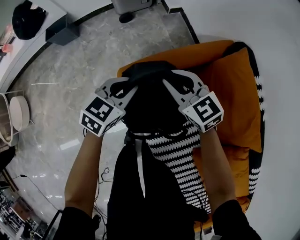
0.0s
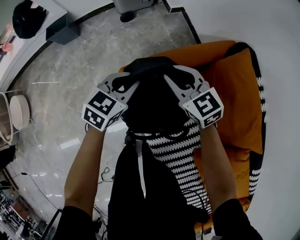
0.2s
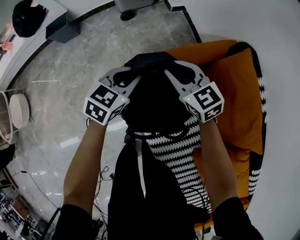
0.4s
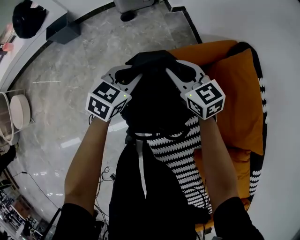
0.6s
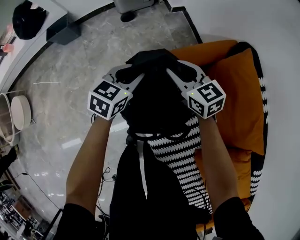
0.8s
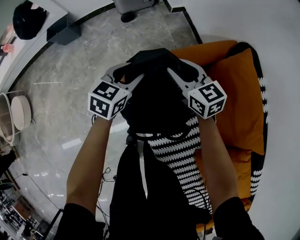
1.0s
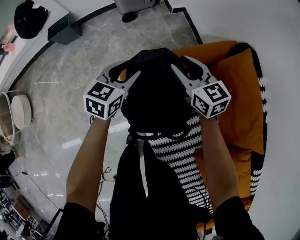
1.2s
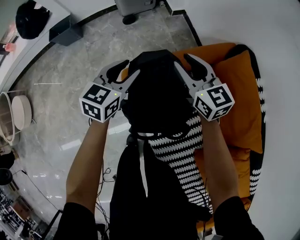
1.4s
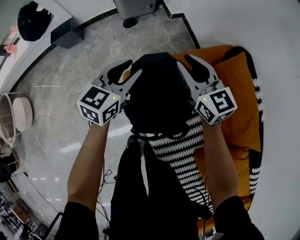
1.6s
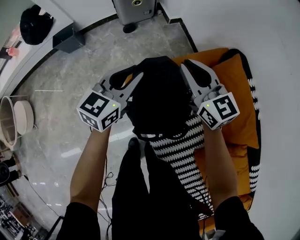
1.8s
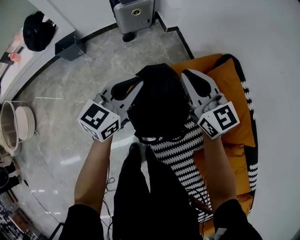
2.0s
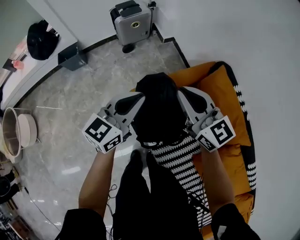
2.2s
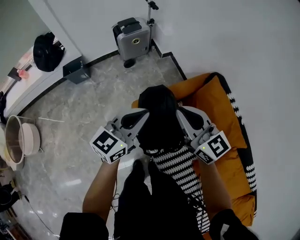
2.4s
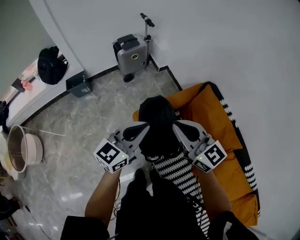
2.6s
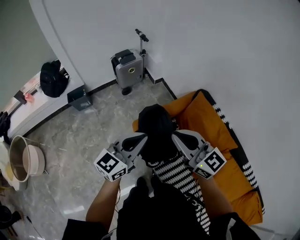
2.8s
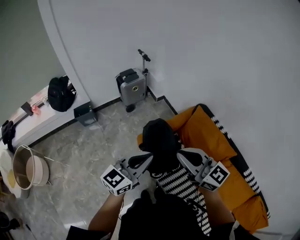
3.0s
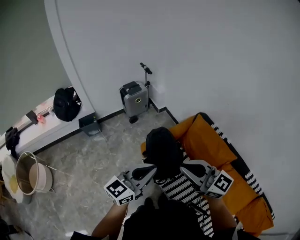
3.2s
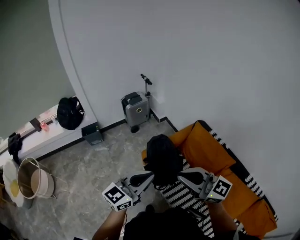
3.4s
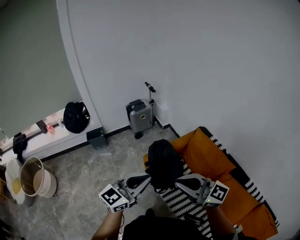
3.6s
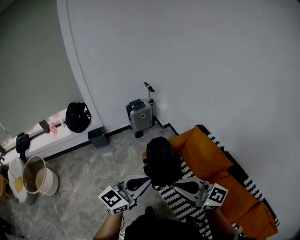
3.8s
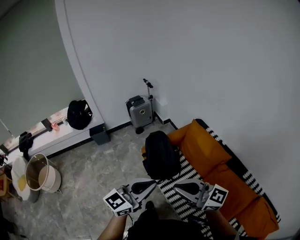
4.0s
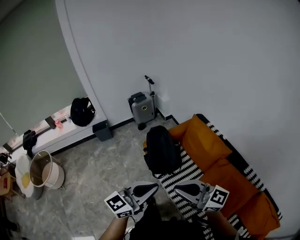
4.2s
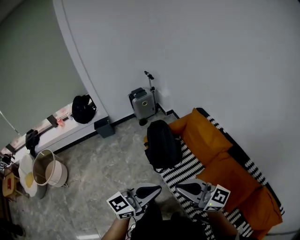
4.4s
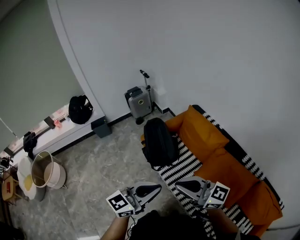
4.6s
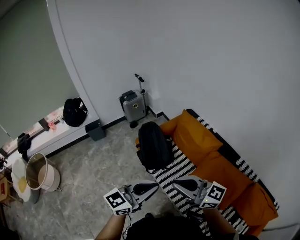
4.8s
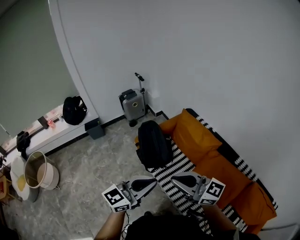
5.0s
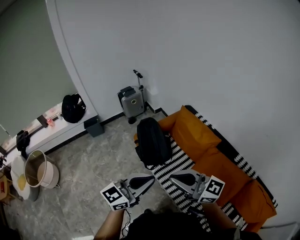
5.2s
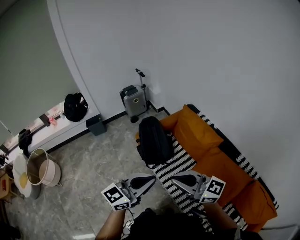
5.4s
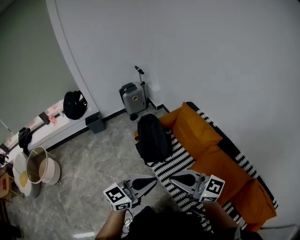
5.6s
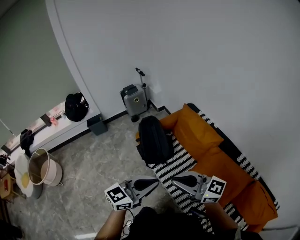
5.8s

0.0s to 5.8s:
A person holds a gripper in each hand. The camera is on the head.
0.0s to 1.4s: Both grippers travel together forward, approximately 5 cm. The right gripper opens. The left gripper opens up.
1.4s to 2.8s: The grippers both shift upward and backward by roughly 40 cm. The left gripper turns by approximately 30 degrees, and closes its fingers. Meanwhile the right gripper closes.
2.8s to 4.4s: The grippers both shift backward by some 40 cm. The right gripper swivels approximately 20 degrees.
4.4s to 5.8s: The grippers move only a little.

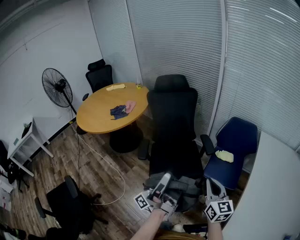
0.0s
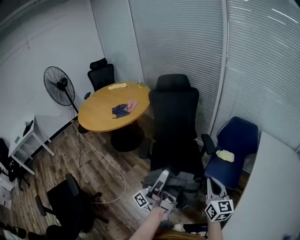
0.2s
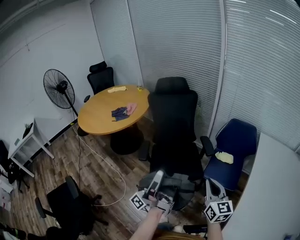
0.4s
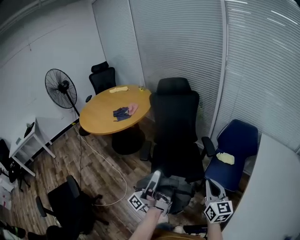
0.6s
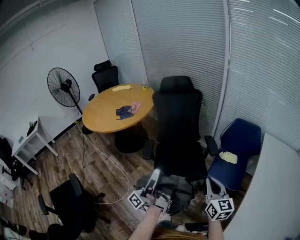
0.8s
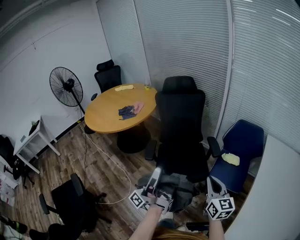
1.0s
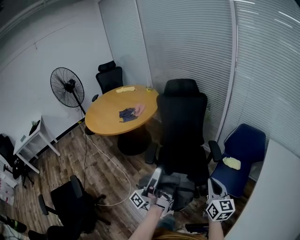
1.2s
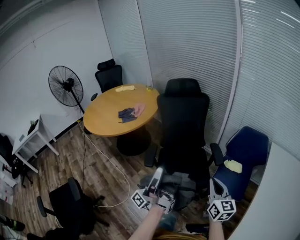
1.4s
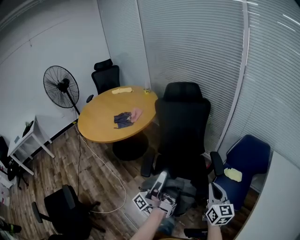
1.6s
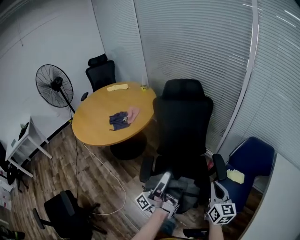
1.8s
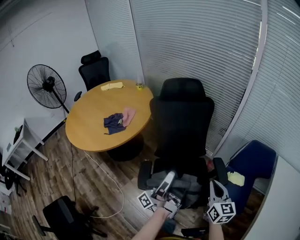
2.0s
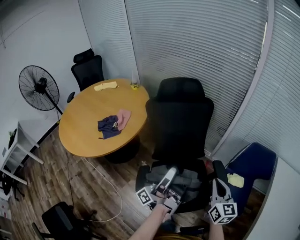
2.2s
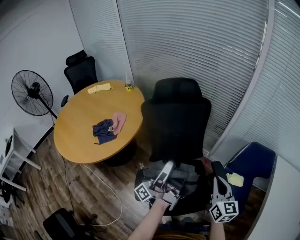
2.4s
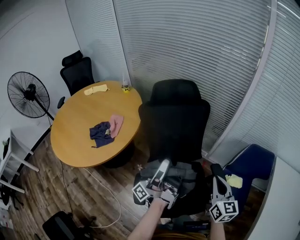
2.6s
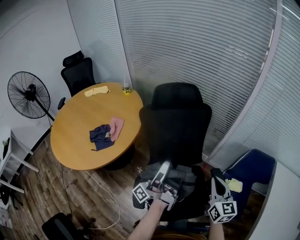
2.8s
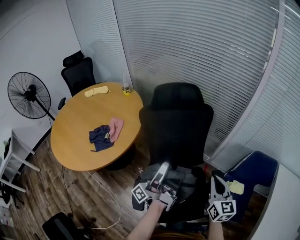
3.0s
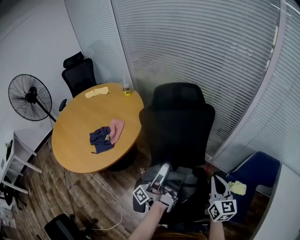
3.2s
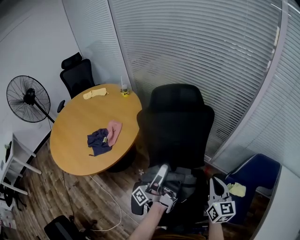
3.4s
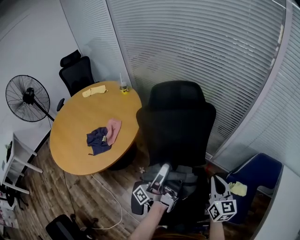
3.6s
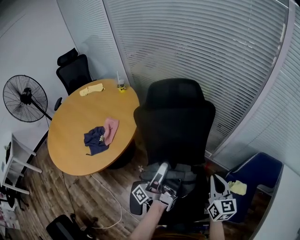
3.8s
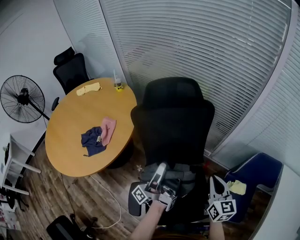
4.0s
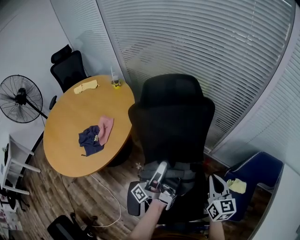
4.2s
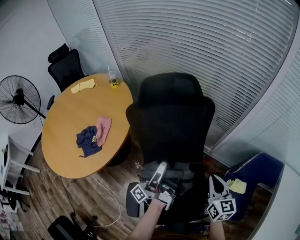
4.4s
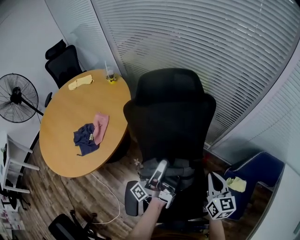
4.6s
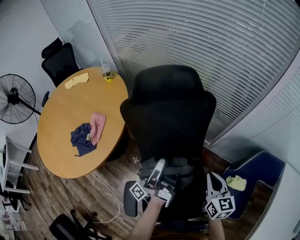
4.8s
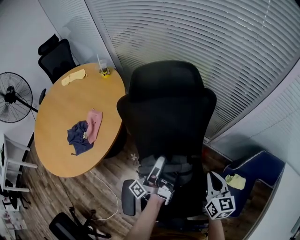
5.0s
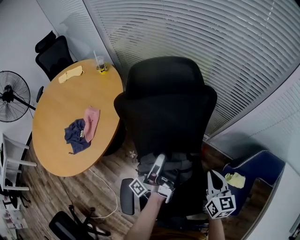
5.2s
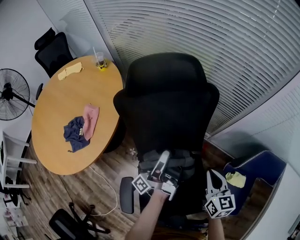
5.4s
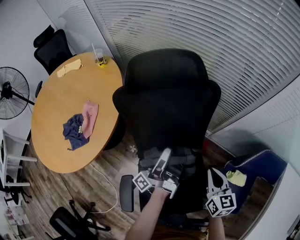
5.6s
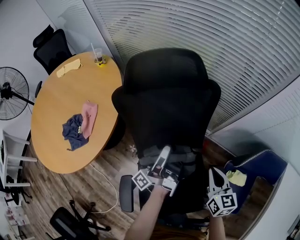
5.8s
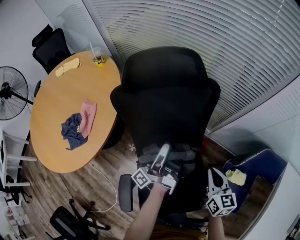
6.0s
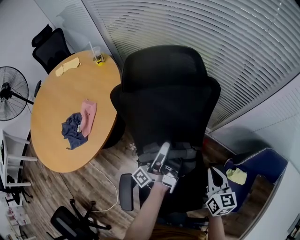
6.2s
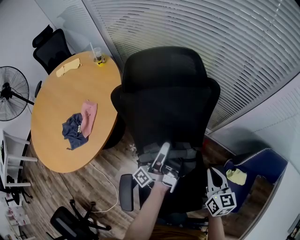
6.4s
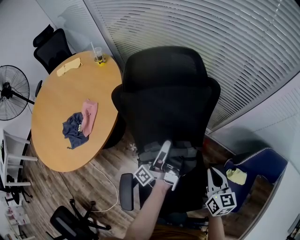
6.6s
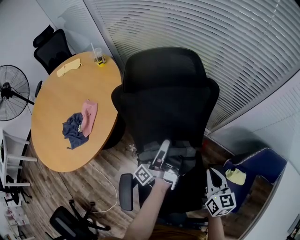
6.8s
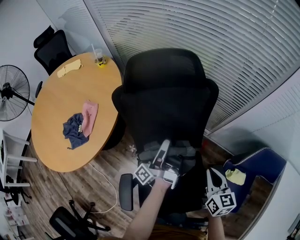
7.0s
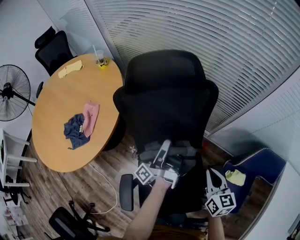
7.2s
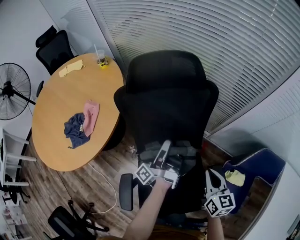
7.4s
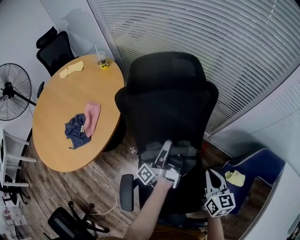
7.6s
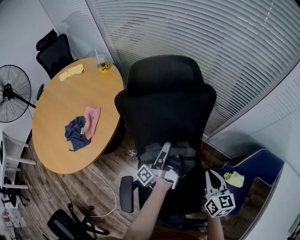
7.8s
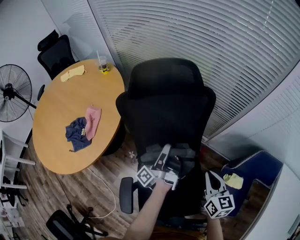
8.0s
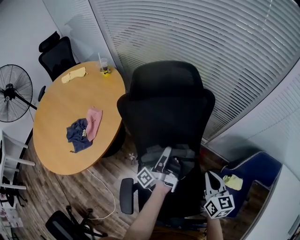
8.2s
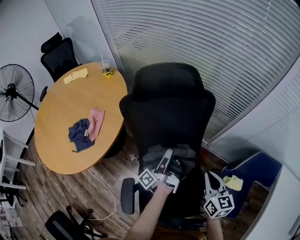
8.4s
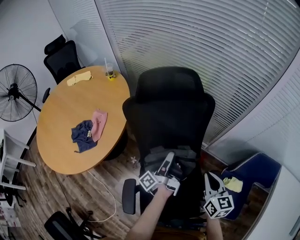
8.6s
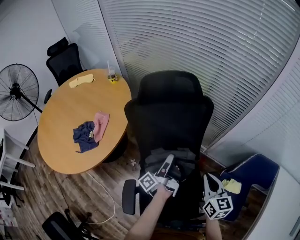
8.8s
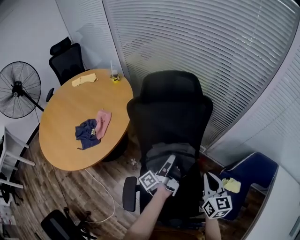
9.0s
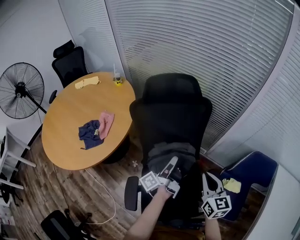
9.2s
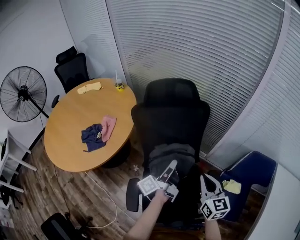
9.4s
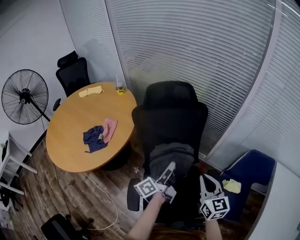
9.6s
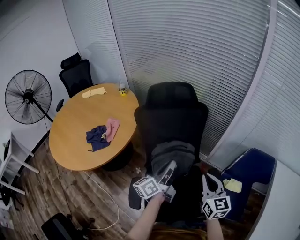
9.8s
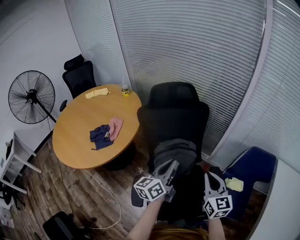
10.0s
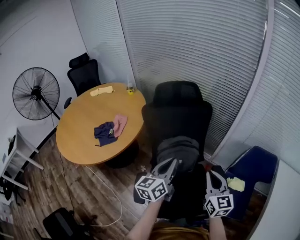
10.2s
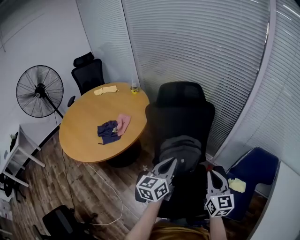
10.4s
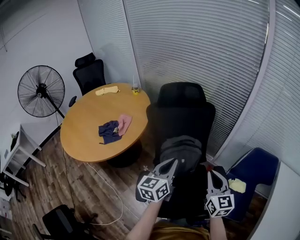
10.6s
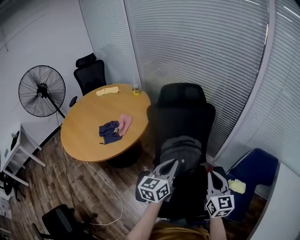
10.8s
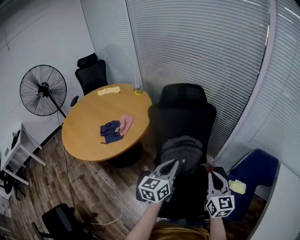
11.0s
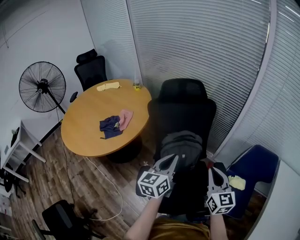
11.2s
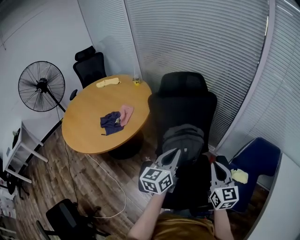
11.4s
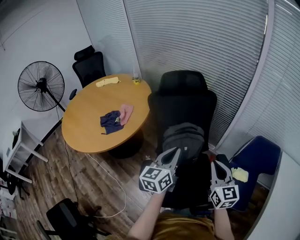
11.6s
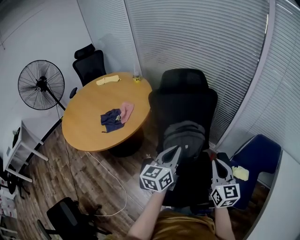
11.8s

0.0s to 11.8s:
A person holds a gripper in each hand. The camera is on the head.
0.0s to 1.4s: The right gripper moves about 10 cm.
1.4s to 3.0s: The right gripper shifts by some 40 cm.
3.0s to 4.4s: The right gripper shifts by about 10 cm.
4.4s to 6.0s: The right gripper is displaced downward by approximately 5 cm.
7.4s to 8.8s: The right gripper travels upward by approximately 5 cm.
8.8s to 10.4s: The right gripper moves about 15 cm.

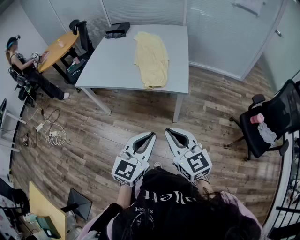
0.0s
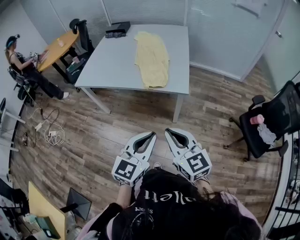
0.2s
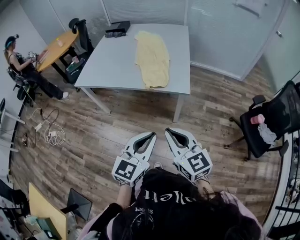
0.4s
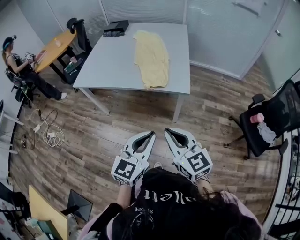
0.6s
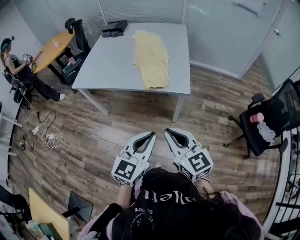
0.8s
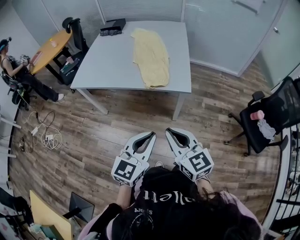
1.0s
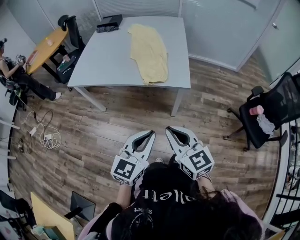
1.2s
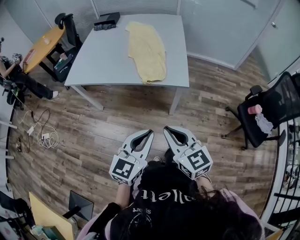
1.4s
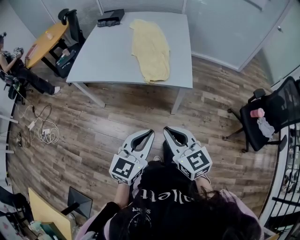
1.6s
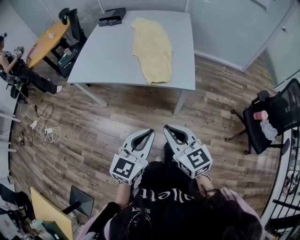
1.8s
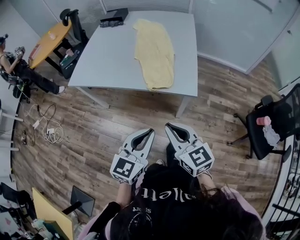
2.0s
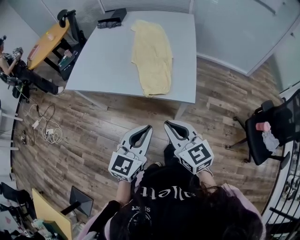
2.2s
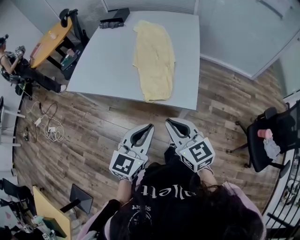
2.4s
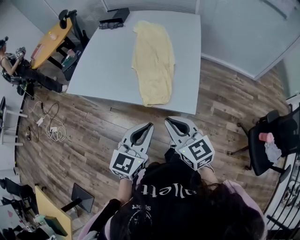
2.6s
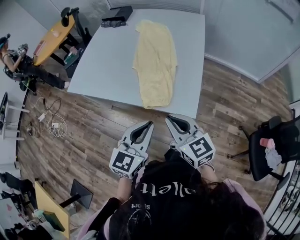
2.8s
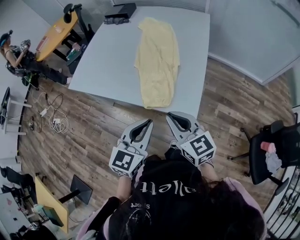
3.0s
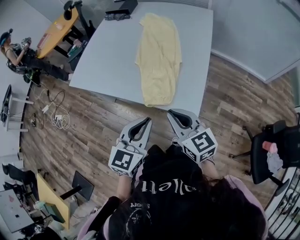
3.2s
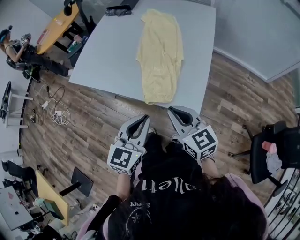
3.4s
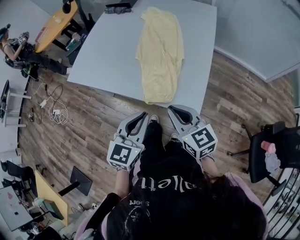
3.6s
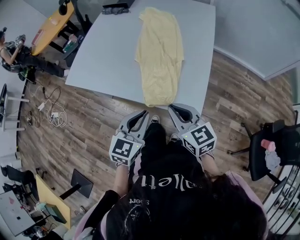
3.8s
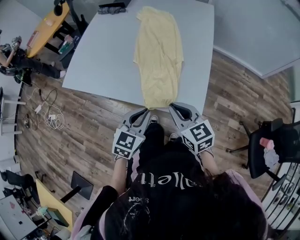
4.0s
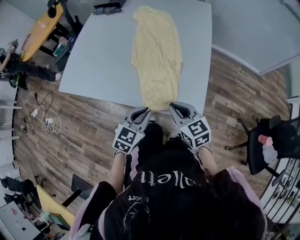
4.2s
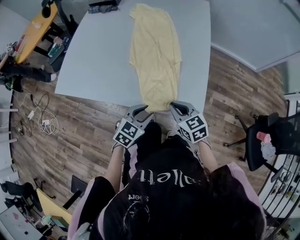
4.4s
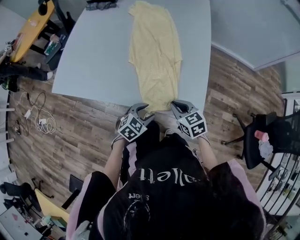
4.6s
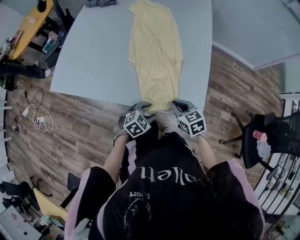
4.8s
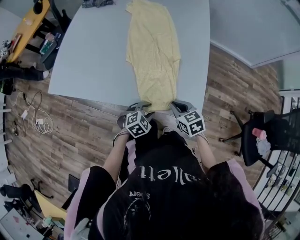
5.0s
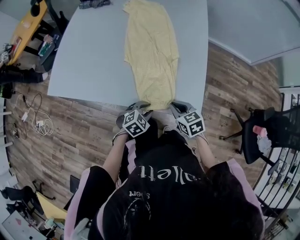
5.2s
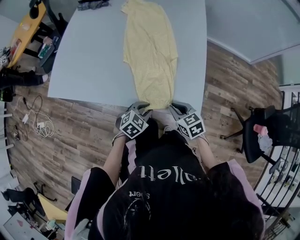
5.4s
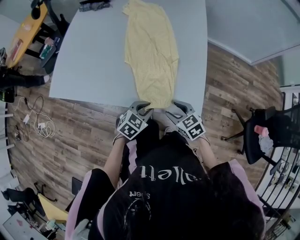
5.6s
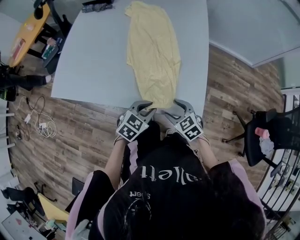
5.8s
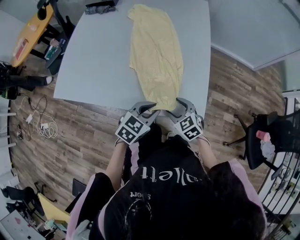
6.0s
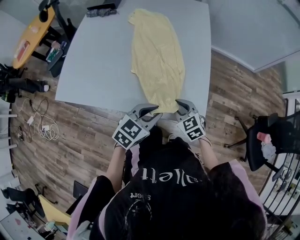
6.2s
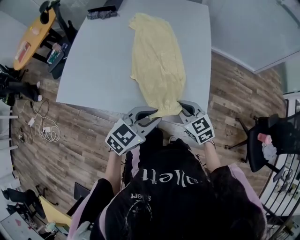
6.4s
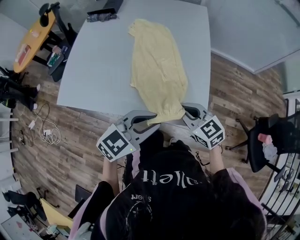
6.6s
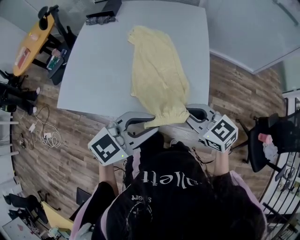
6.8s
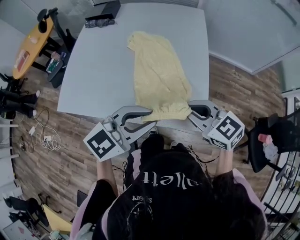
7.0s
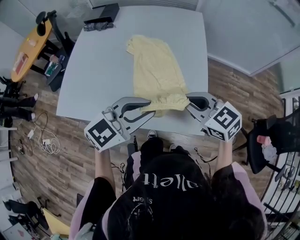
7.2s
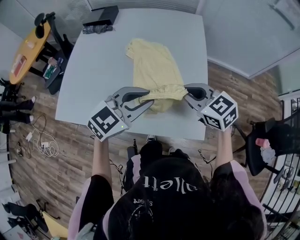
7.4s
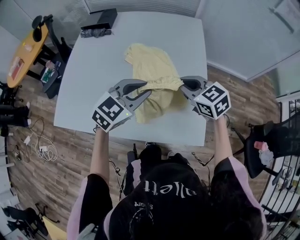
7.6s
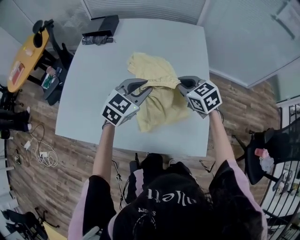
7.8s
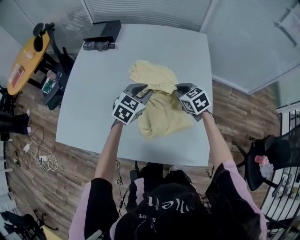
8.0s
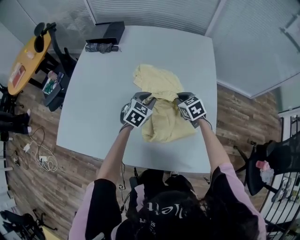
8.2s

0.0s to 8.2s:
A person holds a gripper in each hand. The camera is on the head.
0.0s to 1.6s: The left gripper changes place by some 10 cm; the right gripper moves some 10 cm.
1.6s to 3.2s: Both grippers travel together forward, some 25 cm.
3.2s to 5.0s: The right gripper heads downward and forward, covering approximately 20 cm, and angles its fingers downward, by roughly 30 degrees, while the left gripper is displaced downward by roughly 30 cm, points its fingers roughly 40 degrees further downward, and opens.
5.0s to 6.6s: The left gripper is displaced upward by roughly 25 cm, and points its fingers about 30 degrees further upward, while the right gripper shifts approximately 15 cm upward, swivels roughly 20 degrees, and opens, then closes again.
6.6s to 8.2s: The left gripper travels forward and downward by some 40 cm, and turns by approximately 30 degrees. Meanwhile the right gripper heads forward, covering some 30 cm, and turns by some 20 degrees.
